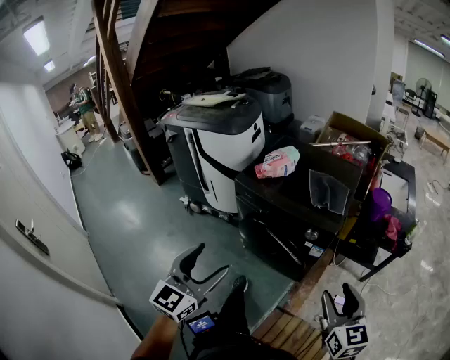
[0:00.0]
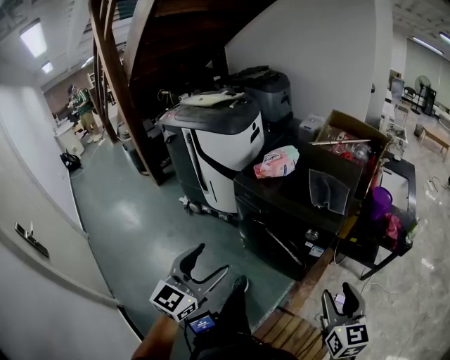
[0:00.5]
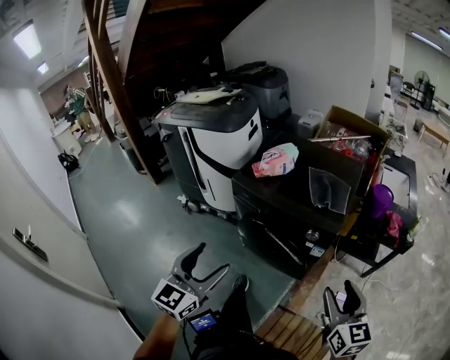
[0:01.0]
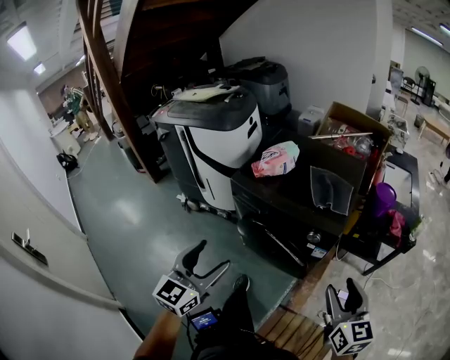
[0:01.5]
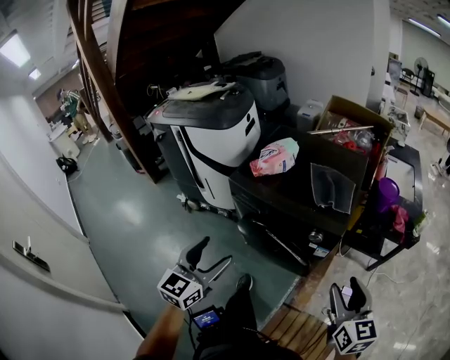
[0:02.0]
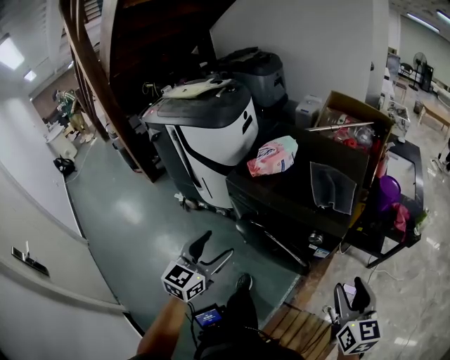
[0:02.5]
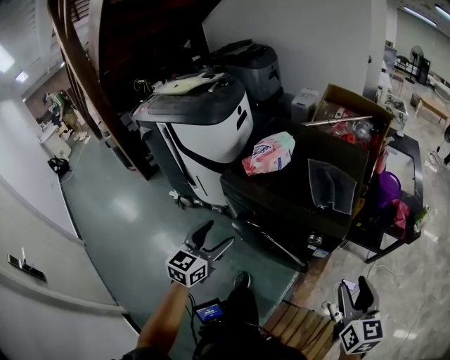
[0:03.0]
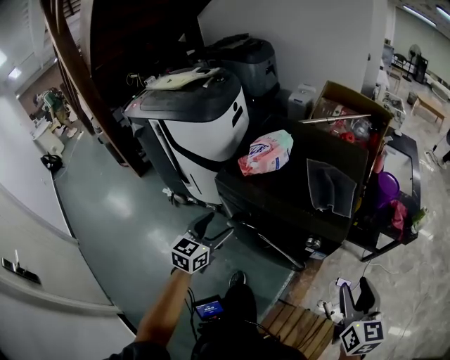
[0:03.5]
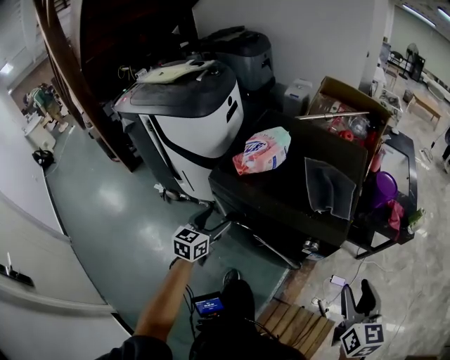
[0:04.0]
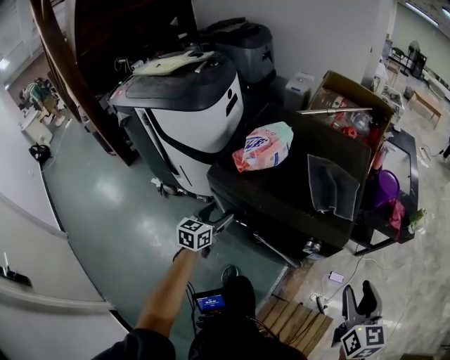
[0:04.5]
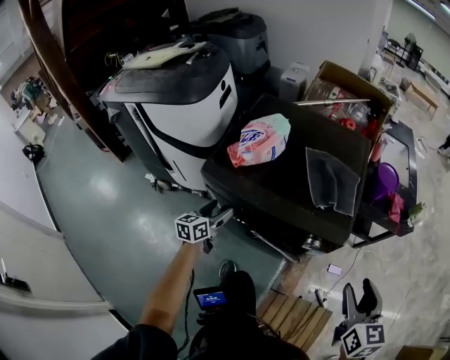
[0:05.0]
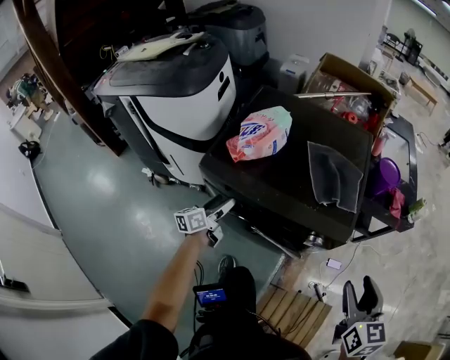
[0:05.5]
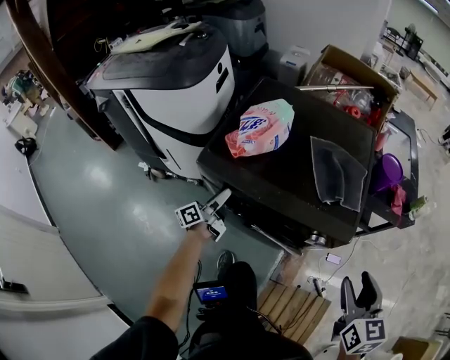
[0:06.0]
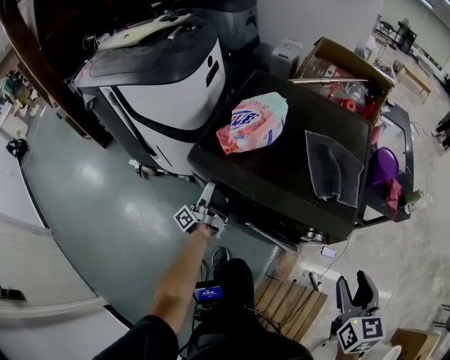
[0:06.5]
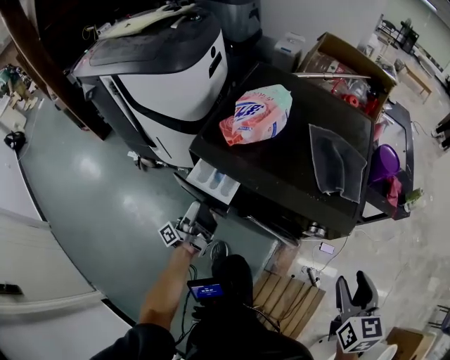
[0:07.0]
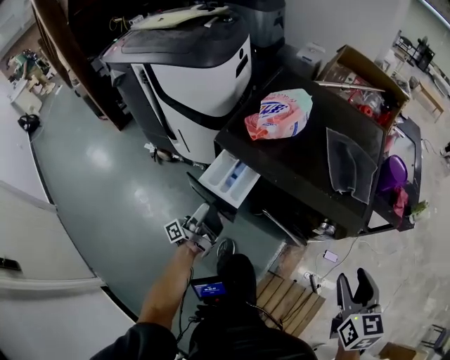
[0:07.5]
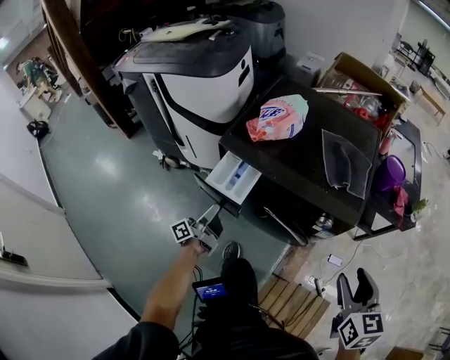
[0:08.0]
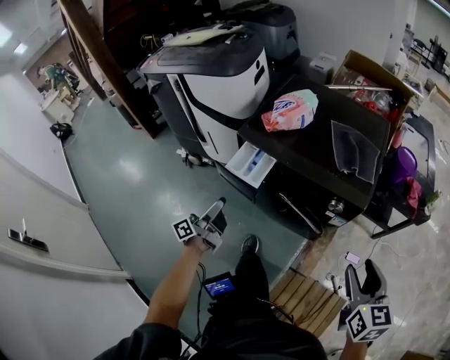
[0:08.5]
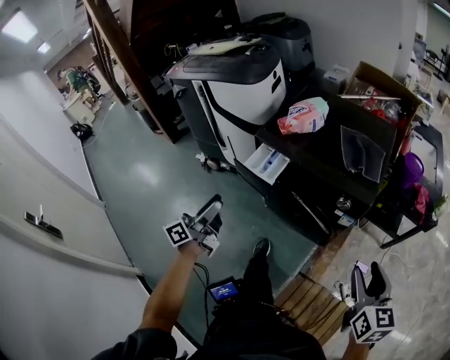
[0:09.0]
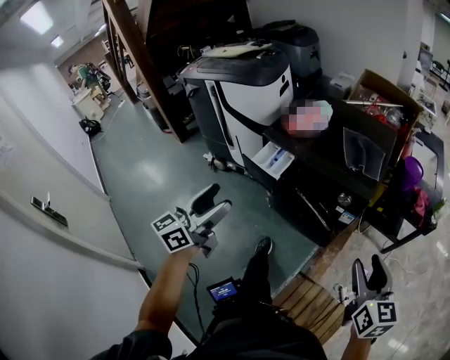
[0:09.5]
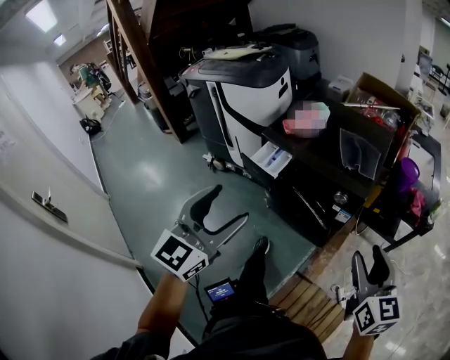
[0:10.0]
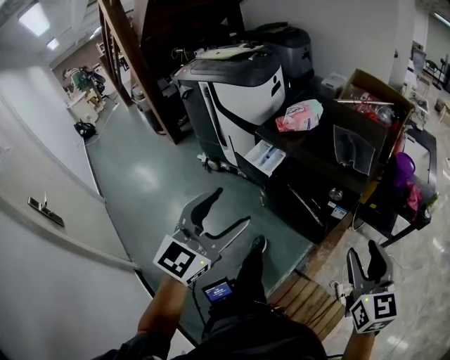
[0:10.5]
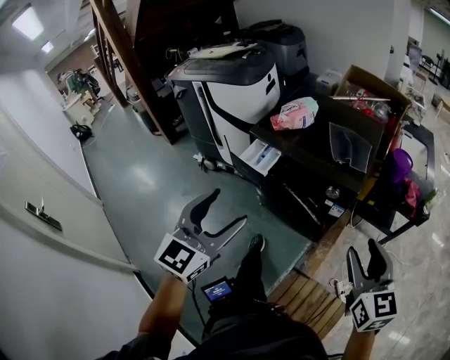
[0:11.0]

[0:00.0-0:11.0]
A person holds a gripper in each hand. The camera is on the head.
0:00.0 to 0:02.0: The right gripper travels forward by some 10 cm; the left gripper is displaced forward and downward by roughly 15 cm.
0:02.0 to 0:03.5: The left gripper goes some 20 cm forward and downward, while the right gripper is displaced forward by about 5 cm.
0:03.5 to 0:05.5: The right gripper ends up some 5 cm from where it was; the left gripper is displaced downward and forward by approximately 20 cm, and rotates around the line of its fingers by about 40 degrees, counterclockwise from behind.
0:05.5 to 0:07.5: The right gripper goes approximately 5 cm to the left, while the left gripper moves backward, approximately 10 cm, and tilts its fingers roughly 40 degrees upward.
0:07.5 to 0:09.0: The left gripper goes approximately 25 cm backward and upward, and rotates some 40 degrees. Meanwhile the right gripper goes about 10 cm backward.
0:09.0 to 0:11.0: The left gripper travels upward, to the right and backward by some 25 cm, and rotates around the line of its fingers by some 70 degrees, clockwise from behind. The right gripper moves upward, some 5 cm.

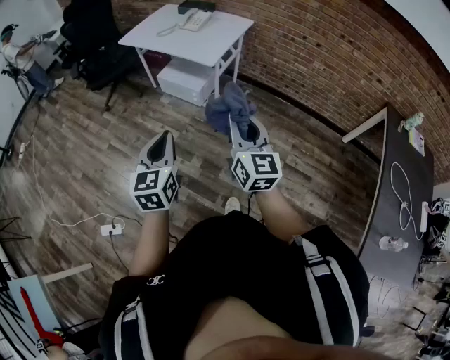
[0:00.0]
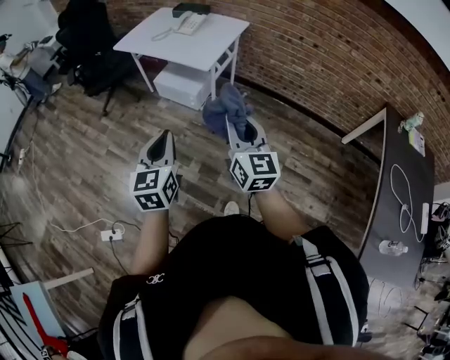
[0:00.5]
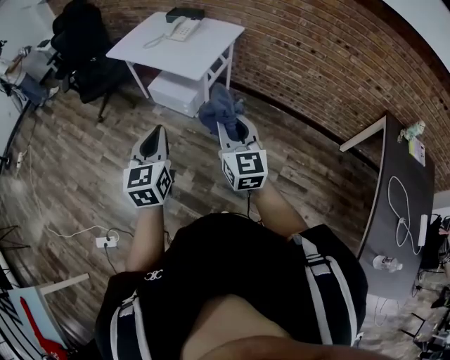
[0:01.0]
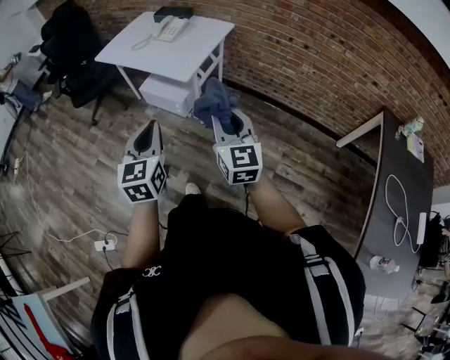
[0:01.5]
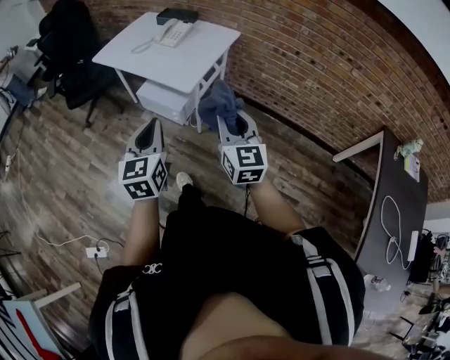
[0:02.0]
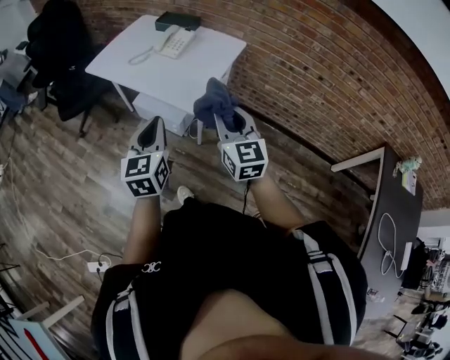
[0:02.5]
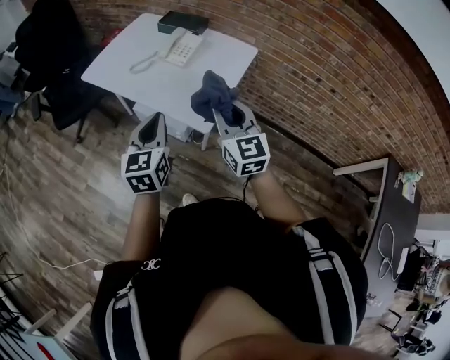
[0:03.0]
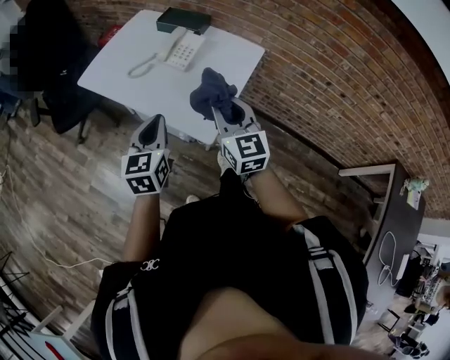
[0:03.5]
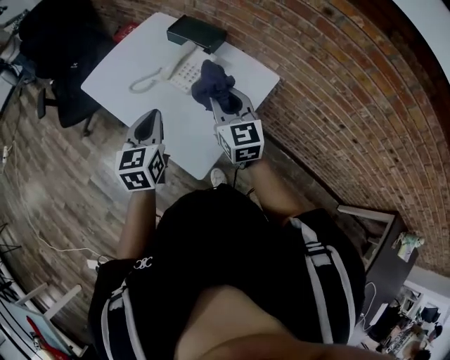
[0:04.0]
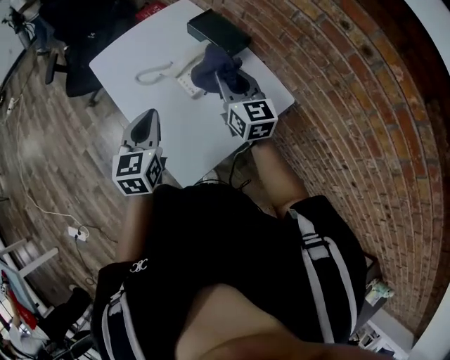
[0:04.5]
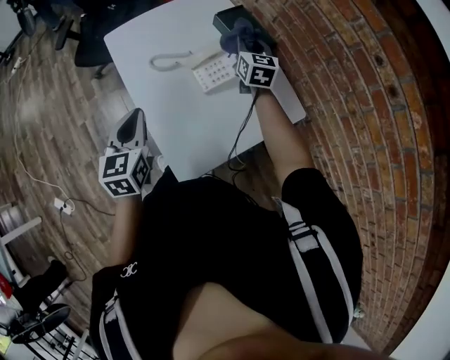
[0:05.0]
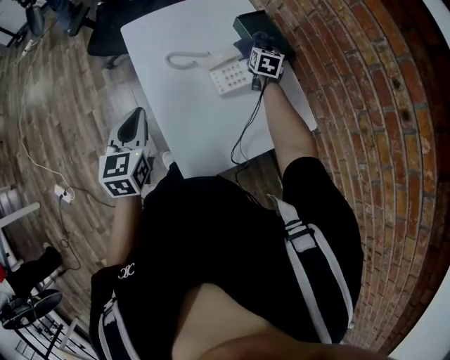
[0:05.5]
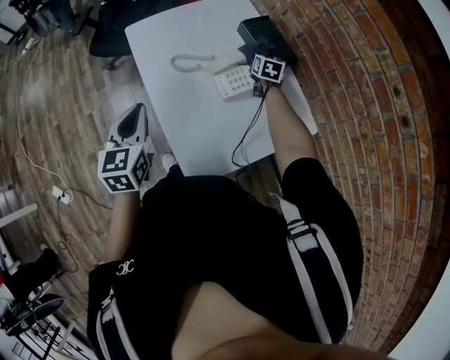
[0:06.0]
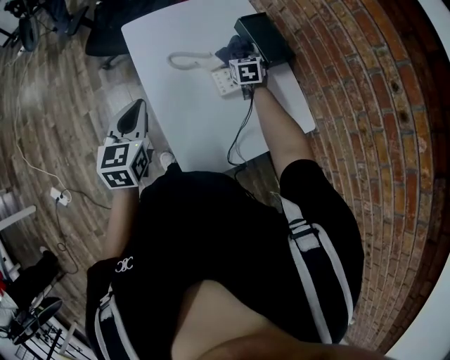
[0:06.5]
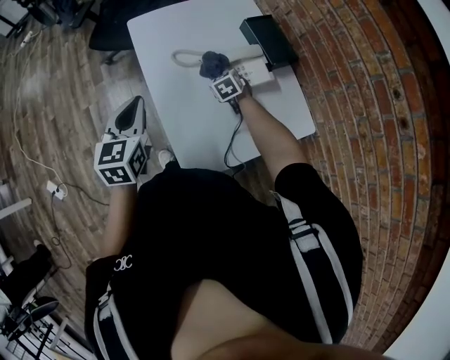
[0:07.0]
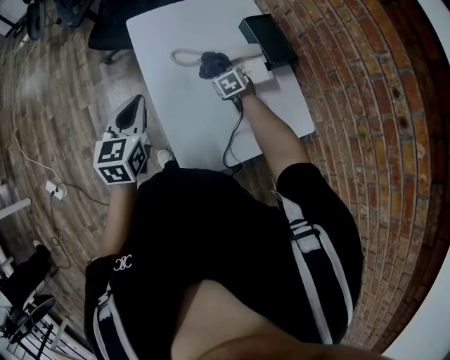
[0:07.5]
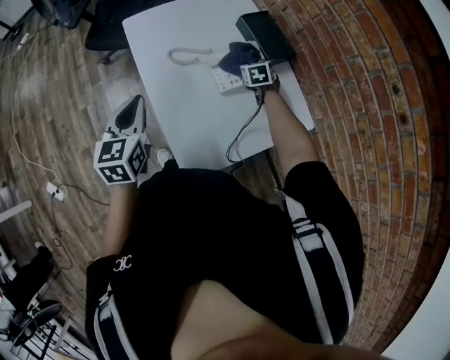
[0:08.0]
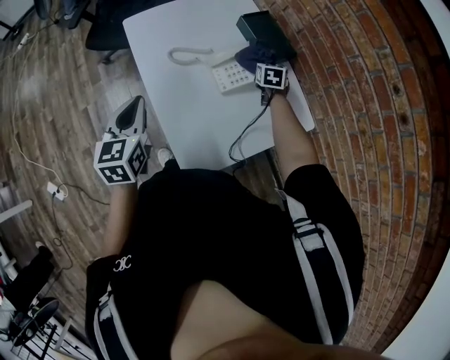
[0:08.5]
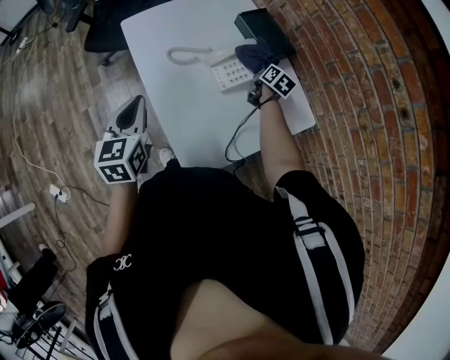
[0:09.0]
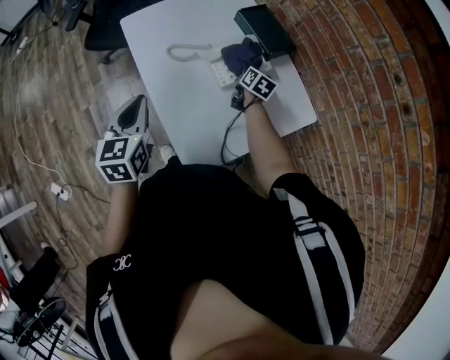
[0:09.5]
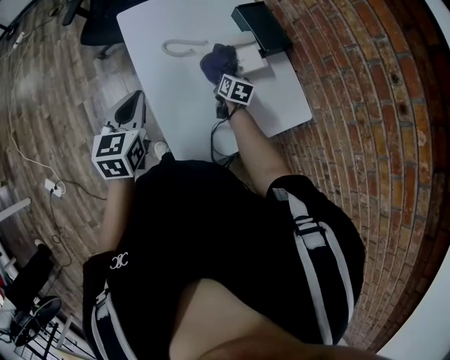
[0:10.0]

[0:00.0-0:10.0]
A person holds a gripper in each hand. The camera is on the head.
0:00.0 to 0:02.0: The grippers both shift forward by some 25 cm.
0:02.0 to 0:04.0: Both grippers are carried forward, roughly 50 cm.
0:04.0 to 0:06.0: The left gripper shifts roughly 10 cm to the left, and changes its angle by roughly 30 degrees; the right gripper heads forward and downward, covering roughly 40 cm, and swivels about 30 degrees.
0:06.0 to 0:08.0: The right gripper moves about 20 cm to the left and comes back, and changes its angle by roughly 30 degrees.
0:08.0 to 0:10.0: The right gripper moves backward and to the left, some 10 cm, and rotates approximately 40 degrees.

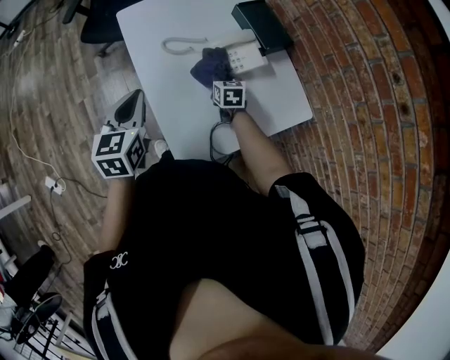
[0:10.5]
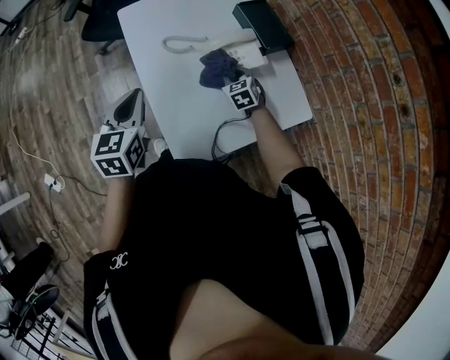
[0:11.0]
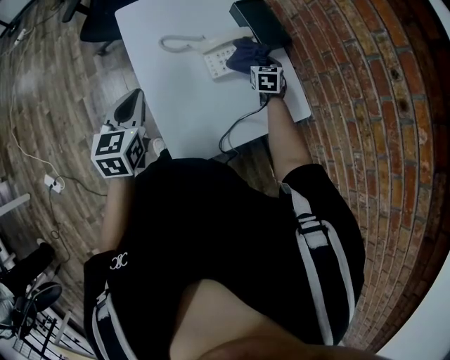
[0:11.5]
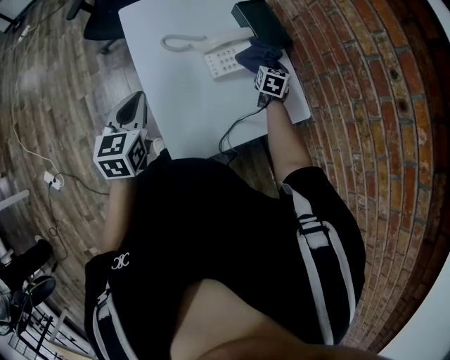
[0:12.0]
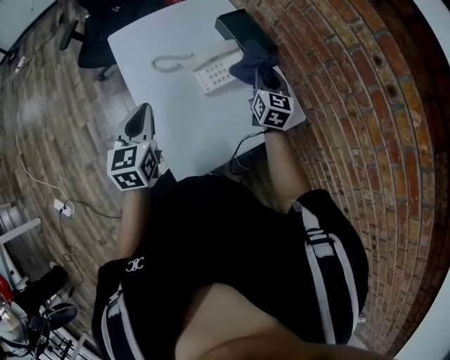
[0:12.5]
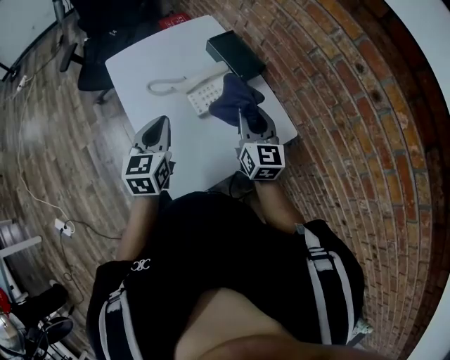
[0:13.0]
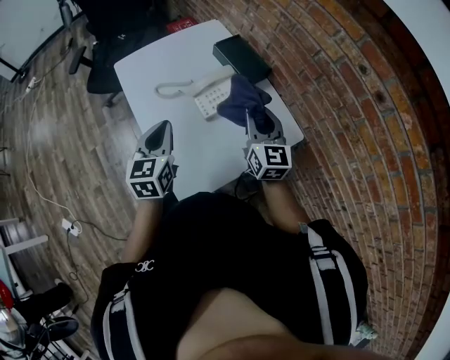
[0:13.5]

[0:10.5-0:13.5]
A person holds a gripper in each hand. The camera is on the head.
0:10.5 to 0:12.0: The right gripper is displaced to the right by some 20 cm, and turns by approximately 20 degrees.
0:12.0 to 0:13.5: The left gripper is displaced to the right by approximately 10 cm; the right gripper shifts approximately 25 cm upward and backward, and points its fingers approximately 30 degrees further upward.

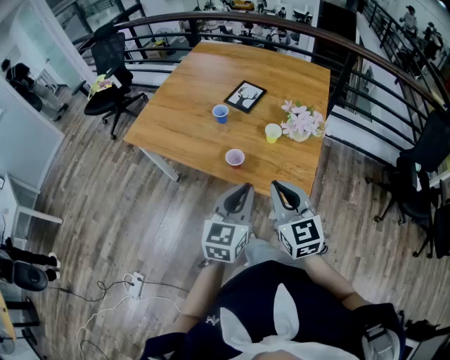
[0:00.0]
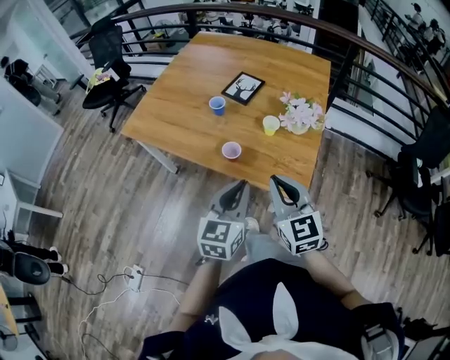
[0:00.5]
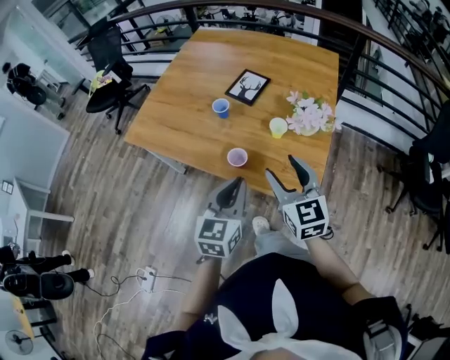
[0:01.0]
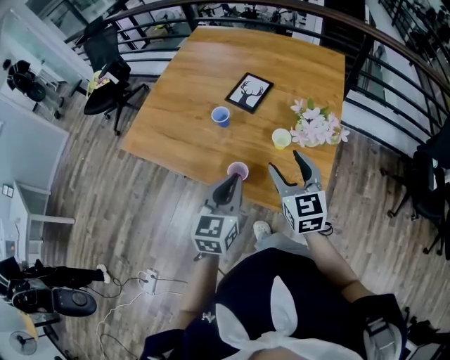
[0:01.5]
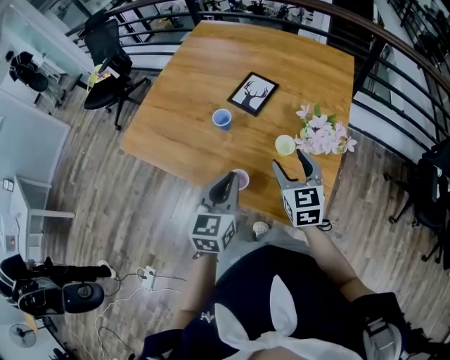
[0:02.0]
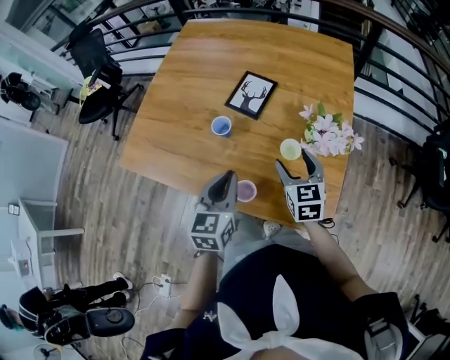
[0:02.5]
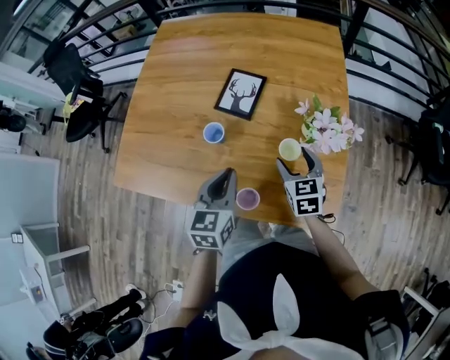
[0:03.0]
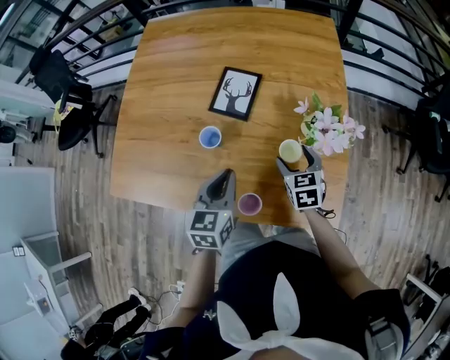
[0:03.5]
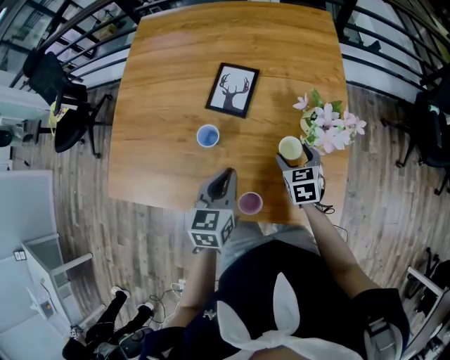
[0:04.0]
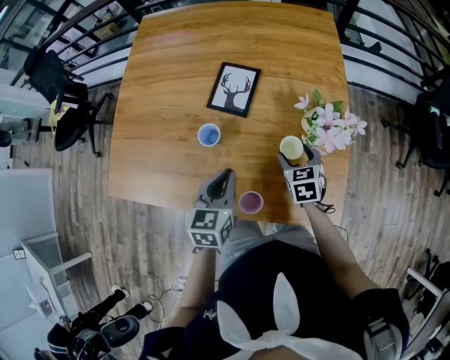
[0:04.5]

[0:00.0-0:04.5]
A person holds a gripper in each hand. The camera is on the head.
0:00.0 to 0:02.0: Both grippers move forward, some 25 cm. The right gripper opens its fingers.
0:02.0 to 0:04.5: The right gripper moves downward and forward, about 20 cm, and turns by some 30 degrees; the left gripper shifts about 15 cm forward, downward and to the left, and turns by about 20 degrees.
